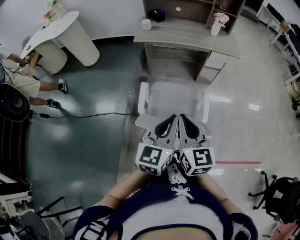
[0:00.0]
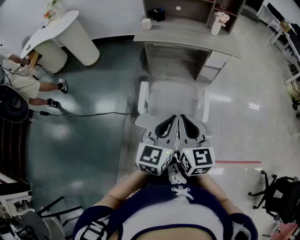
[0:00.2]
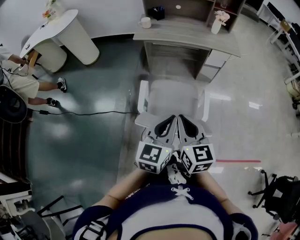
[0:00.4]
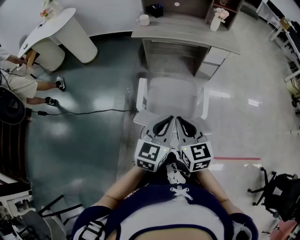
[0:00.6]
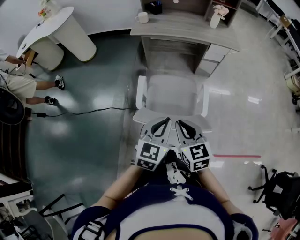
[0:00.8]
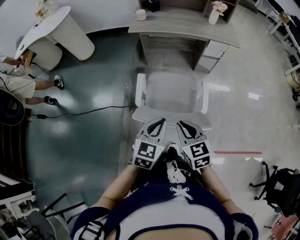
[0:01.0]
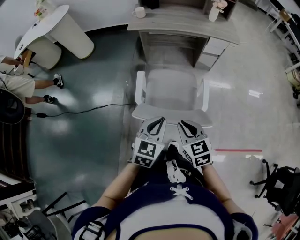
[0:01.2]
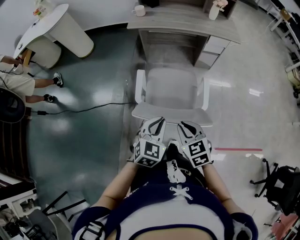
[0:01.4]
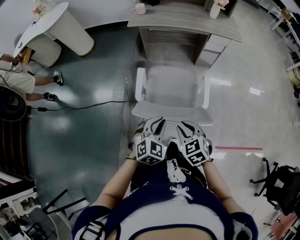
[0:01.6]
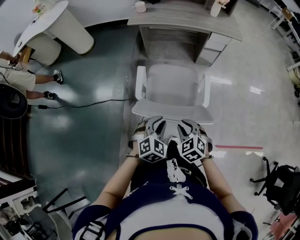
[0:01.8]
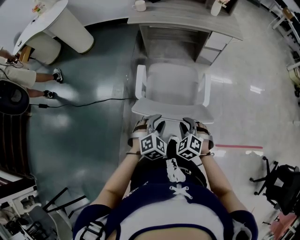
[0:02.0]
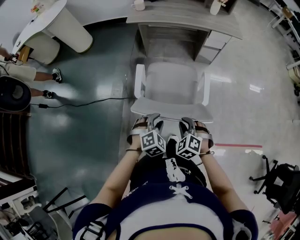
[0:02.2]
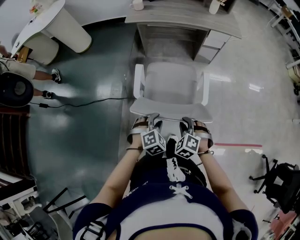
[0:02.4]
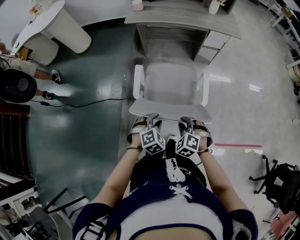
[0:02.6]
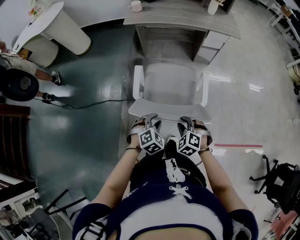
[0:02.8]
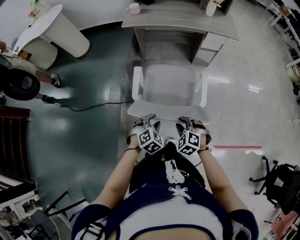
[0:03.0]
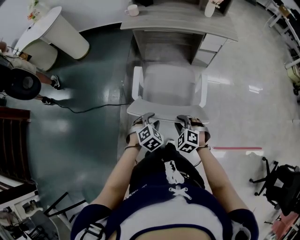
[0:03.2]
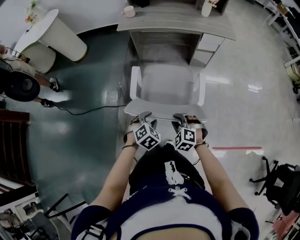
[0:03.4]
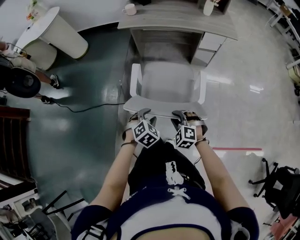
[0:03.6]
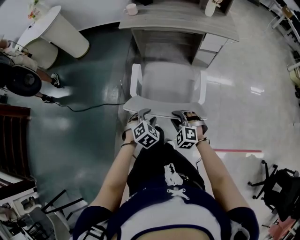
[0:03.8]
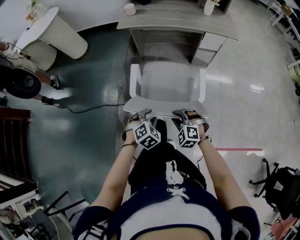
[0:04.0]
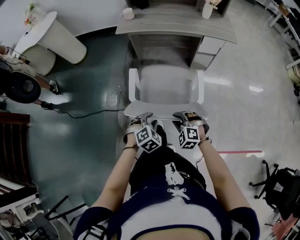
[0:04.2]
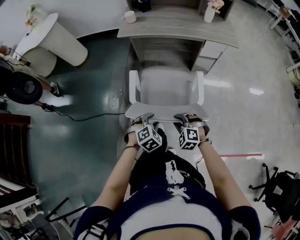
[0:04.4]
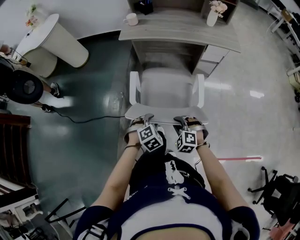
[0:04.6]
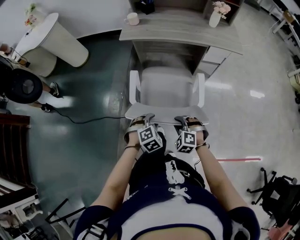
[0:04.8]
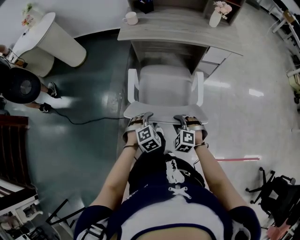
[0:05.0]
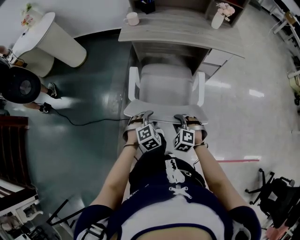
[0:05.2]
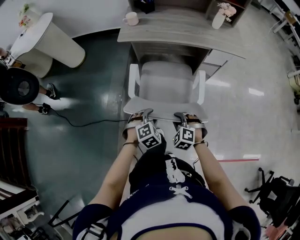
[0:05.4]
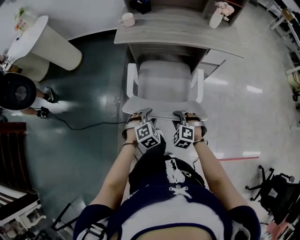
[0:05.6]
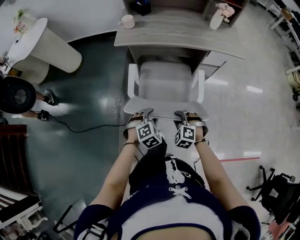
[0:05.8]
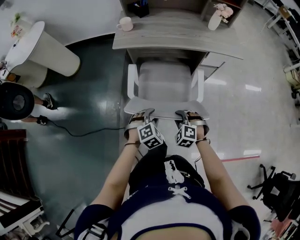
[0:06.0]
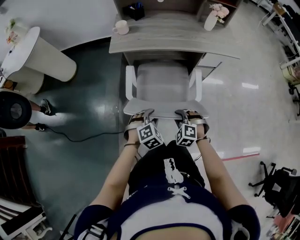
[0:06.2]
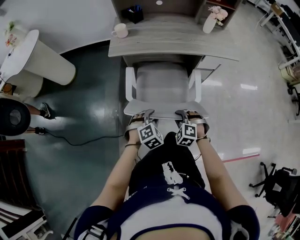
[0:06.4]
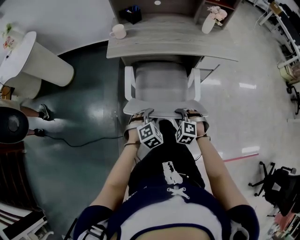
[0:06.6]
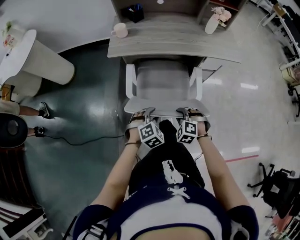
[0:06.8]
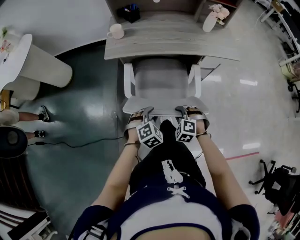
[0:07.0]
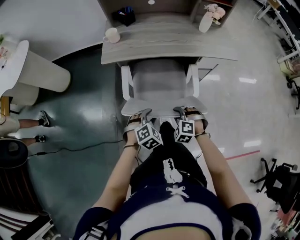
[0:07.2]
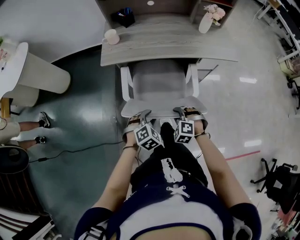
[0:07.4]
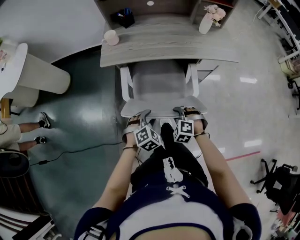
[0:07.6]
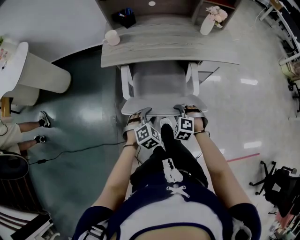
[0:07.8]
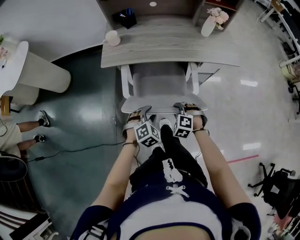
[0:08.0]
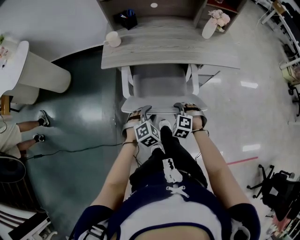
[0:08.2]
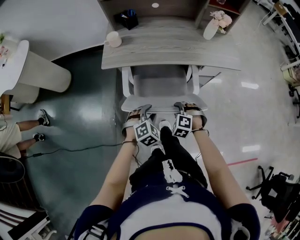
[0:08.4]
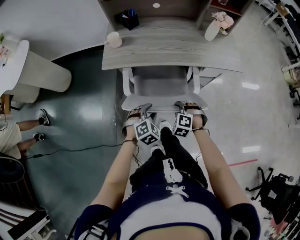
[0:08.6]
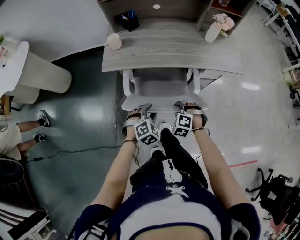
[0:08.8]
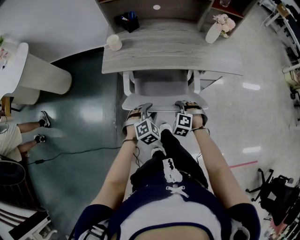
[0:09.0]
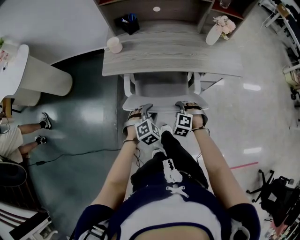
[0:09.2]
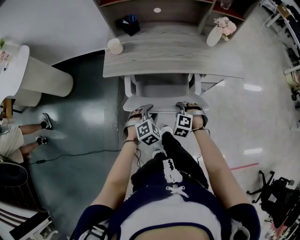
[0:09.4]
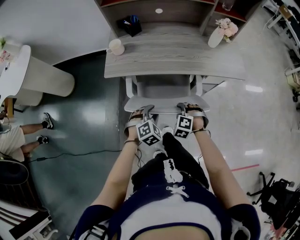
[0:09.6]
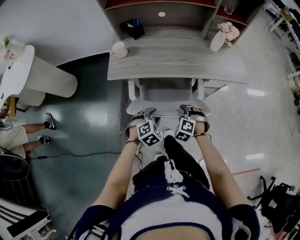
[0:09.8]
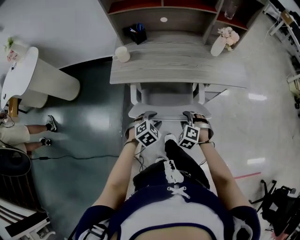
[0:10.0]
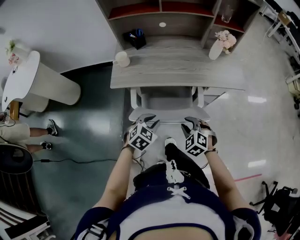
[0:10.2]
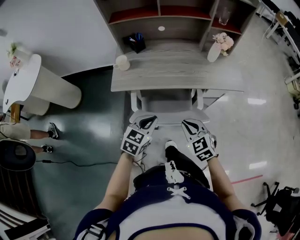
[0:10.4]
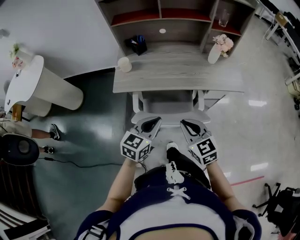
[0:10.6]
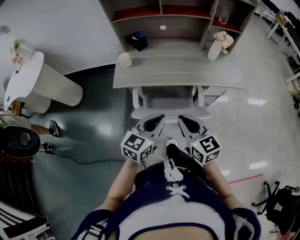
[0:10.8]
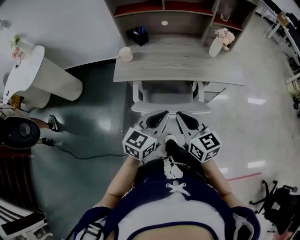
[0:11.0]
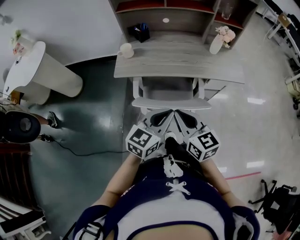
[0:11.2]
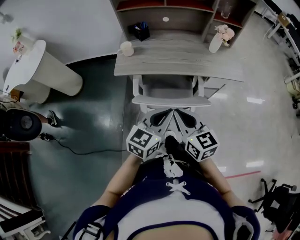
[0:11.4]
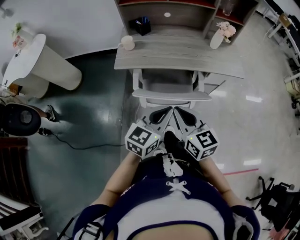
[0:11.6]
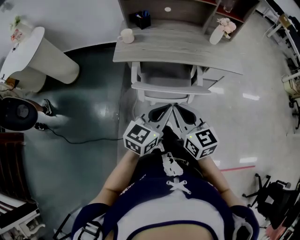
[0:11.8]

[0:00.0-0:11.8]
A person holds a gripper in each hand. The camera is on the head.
0:00.0 to 0:01.4: Both grippers travel together downward, about 15 cm. The left gripper rotates approximately 30 degrees. Meanwhile the right gripper turns by some 30 degrees.
0:01.4 to 0:03.0: Both grippers travel together downward, roughly 15 cm. The left gripper turns by roughly 30 degrees, and opens its fingers. The right gripper turns by approximately 40 degrees.
0:03.0 to 0:04.4: Both grippers travel together forward, roughly 10 cm.
0:04.4 to 0:06.0: Both grippers move forward, about 15 cm.
0:06.0 to 0:07.4: The two grippers go roughly 10 cm forward.
0:07.4 to 0:08.8: Both grippers move forward, approximately 10 cm.
0:08.8 to 0:10.4: The grippers both shift upward by about 15 cm. The right gripper turns by approximately 50 degrees. Meanwhile the left gripper rotates roughly 40 degrees, and closes up.
0:10.4 to 0:11.8: The right gripper is displaced backward, upward and to the left by approximately 15 cm, and turns by approximately 30 degrees. Meanwhile the left gripper shifts about 15 cm backward and upward, and swivels roughly 20 degrees.

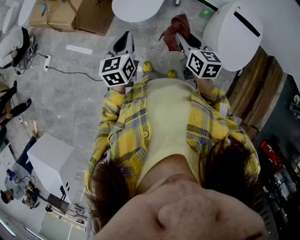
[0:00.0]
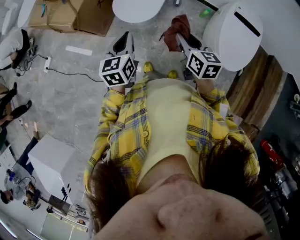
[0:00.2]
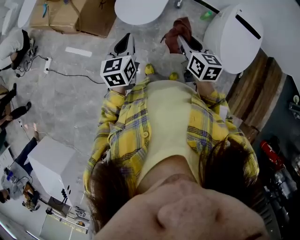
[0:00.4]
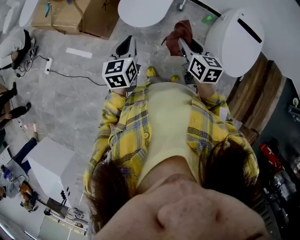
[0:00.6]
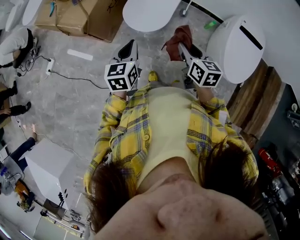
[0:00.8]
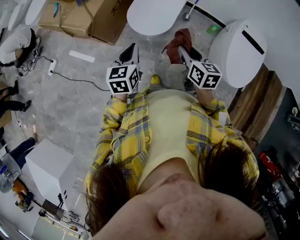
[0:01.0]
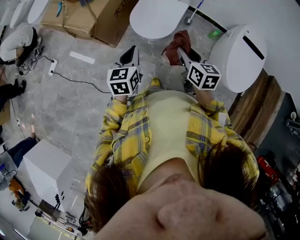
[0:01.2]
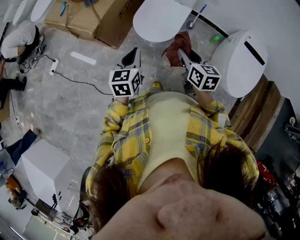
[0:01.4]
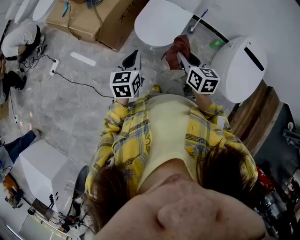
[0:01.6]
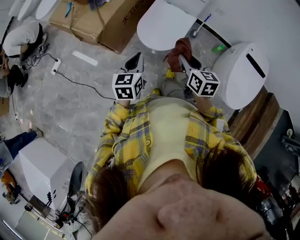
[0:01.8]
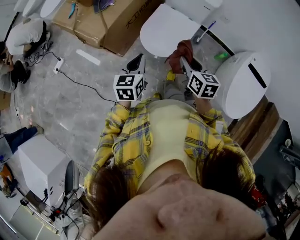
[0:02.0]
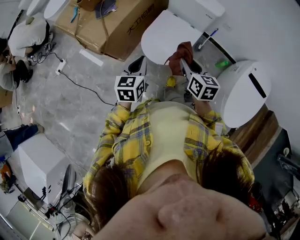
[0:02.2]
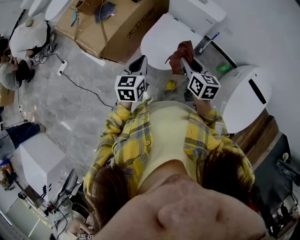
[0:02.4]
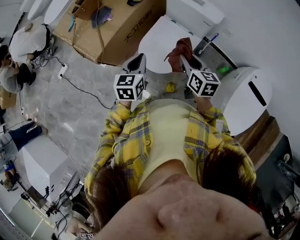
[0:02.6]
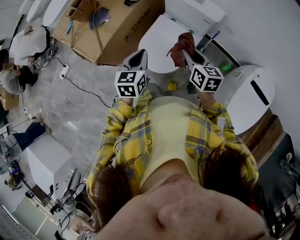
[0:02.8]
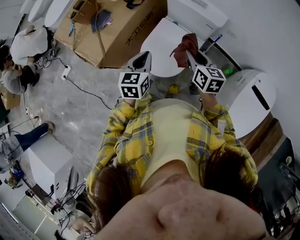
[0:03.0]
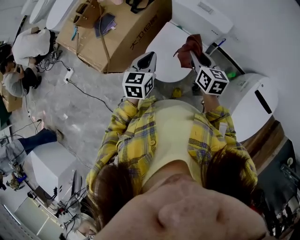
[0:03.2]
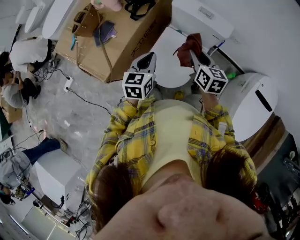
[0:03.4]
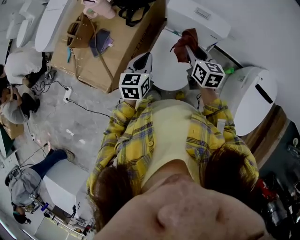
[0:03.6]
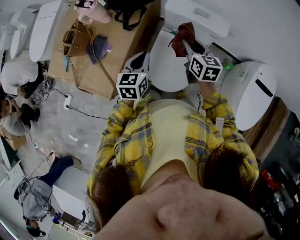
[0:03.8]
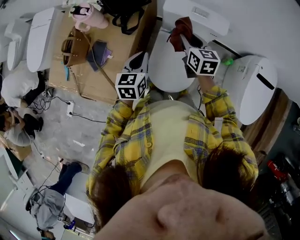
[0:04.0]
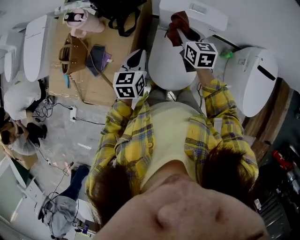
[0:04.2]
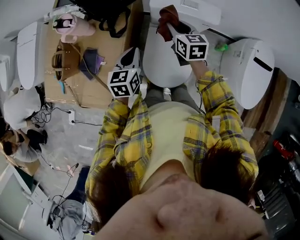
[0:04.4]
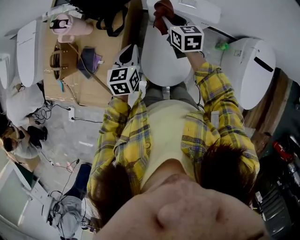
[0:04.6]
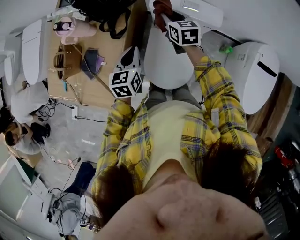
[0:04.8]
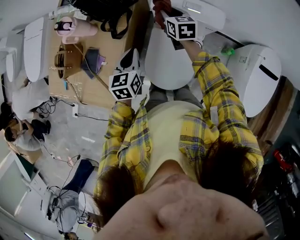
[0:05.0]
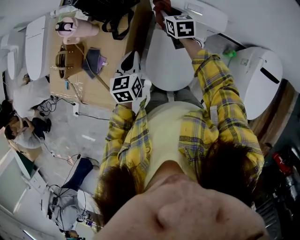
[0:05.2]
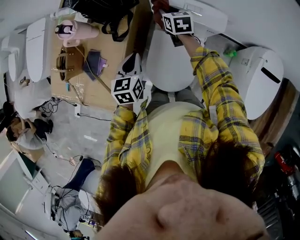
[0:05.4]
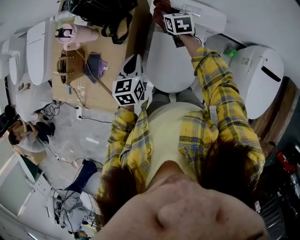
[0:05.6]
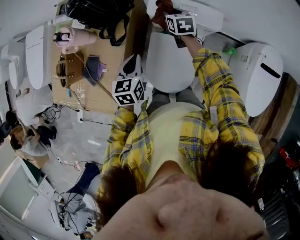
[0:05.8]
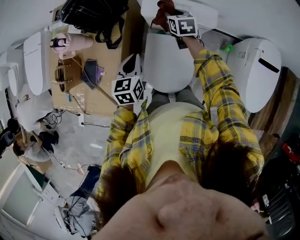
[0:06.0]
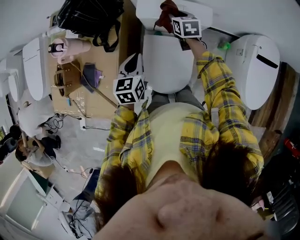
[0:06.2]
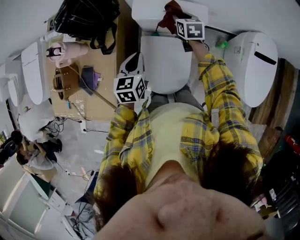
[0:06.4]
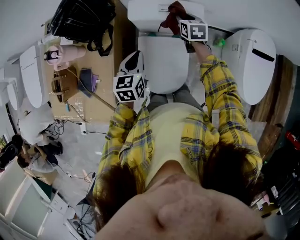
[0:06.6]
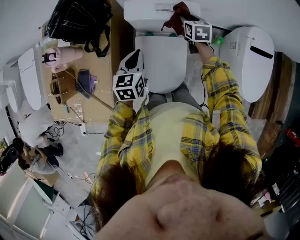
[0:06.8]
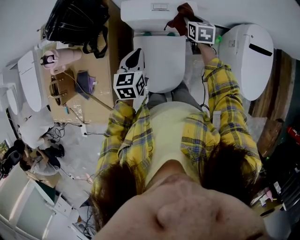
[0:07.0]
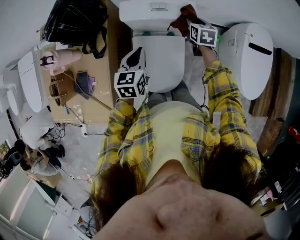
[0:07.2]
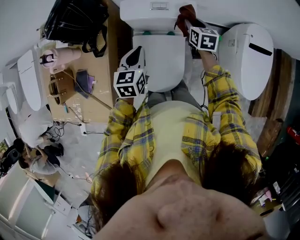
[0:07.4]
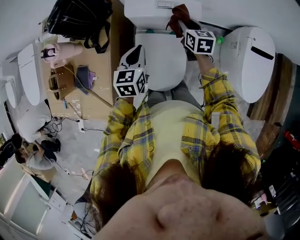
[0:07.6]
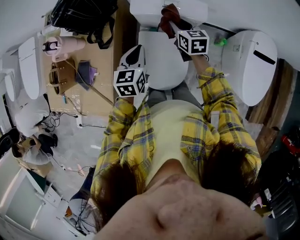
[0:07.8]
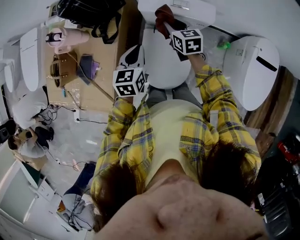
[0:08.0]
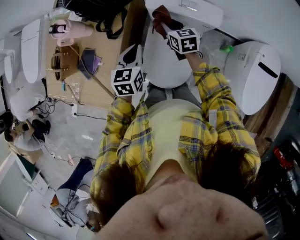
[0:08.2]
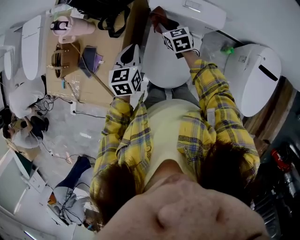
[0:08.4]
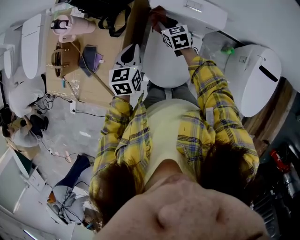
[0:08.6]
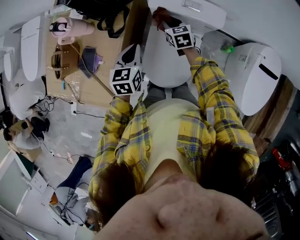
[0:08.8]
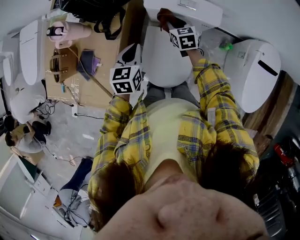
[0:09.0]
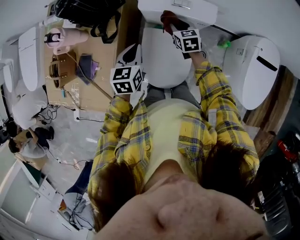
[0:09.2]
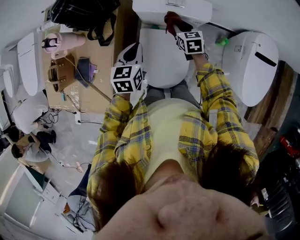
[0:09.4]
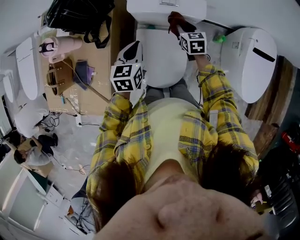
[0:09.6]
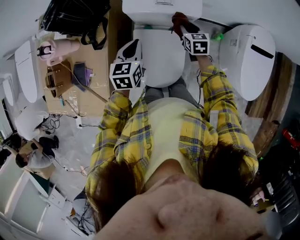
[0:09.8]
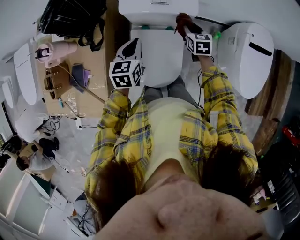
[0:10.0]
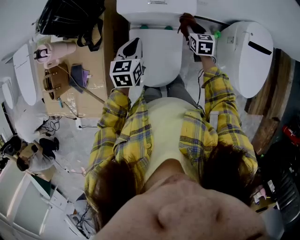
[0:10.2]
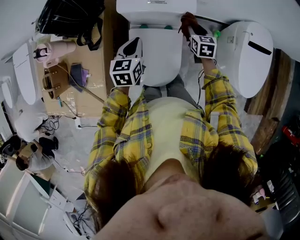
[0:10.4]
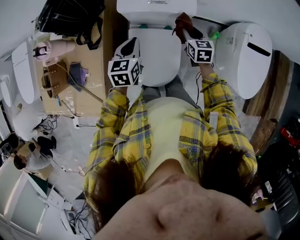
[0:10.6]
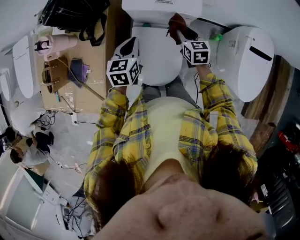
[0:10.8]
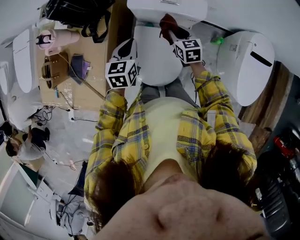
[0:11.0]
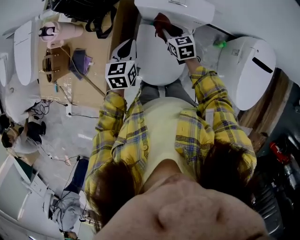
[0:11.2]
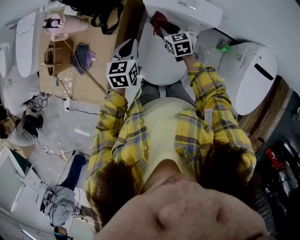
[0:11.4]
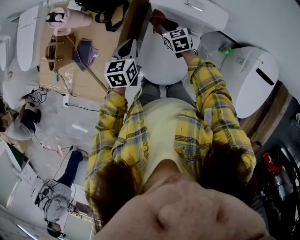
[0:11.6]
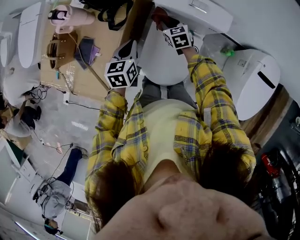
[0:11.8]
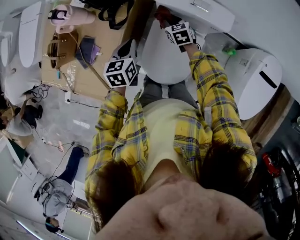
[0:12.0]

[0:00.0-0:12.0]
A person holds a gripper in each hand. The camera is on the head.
0:00.0 to 0:01.6: The grippers both shift to the left and forward by roughly 10 cm.
0:01.6 to 0:03.0: The right gripper moves forward, about 25 cm; the left gripper goes some 25 cm forward and to the right.
0:03.0 to 0:04.4: The grippers both shift forward and to the left by approximately 25 cm. The right gripper rotates approximately 20 degrees. The left gripper changes its angle by roughly 20 degrees.
0:04.4 to 0:06.0: The right gripper shifts roughly 15 cm forward, to the right and downward.
0:06.0 to 0:07.6: The right gripper travels to the right and backward by approximately 15 cm, while the left gripper shifts roughly 10 cm to the right.
0:07.6 to 0:09.0: The right gripper is displaced to the left and downward by about 15 cm, and rotates some 20 degrees, while the left gripper is displaced to the left by about 10 cm.
0:09.0 to 0:10.4: The left gripper heads to the right, covering about 10 cm. The right gripper goes roughly 20 cm to the right, and changes its angle by about 20 degrees.
0:10.4 to 0:12.0: The left gripper ends up roughly 15 cm from where it was, and turns by approximately 20 degrees, while the right gripper moves approximately 25 cm, and swivels some 30 degrees.
